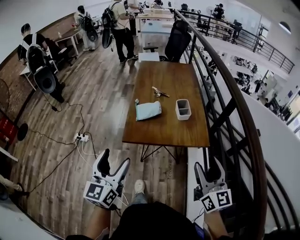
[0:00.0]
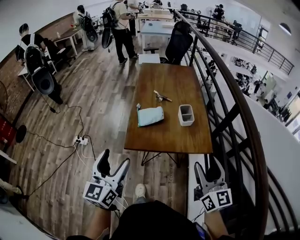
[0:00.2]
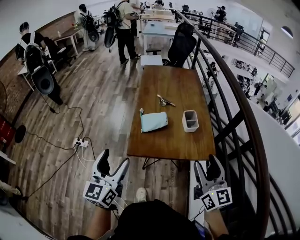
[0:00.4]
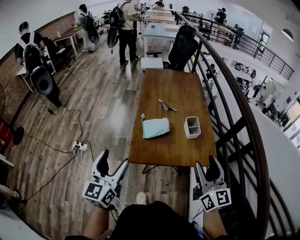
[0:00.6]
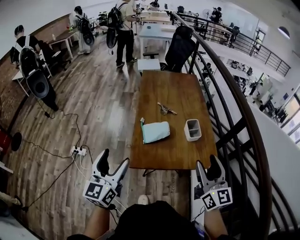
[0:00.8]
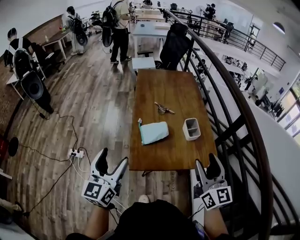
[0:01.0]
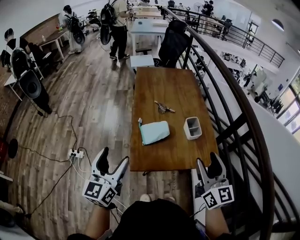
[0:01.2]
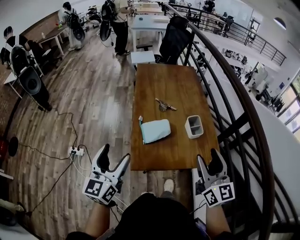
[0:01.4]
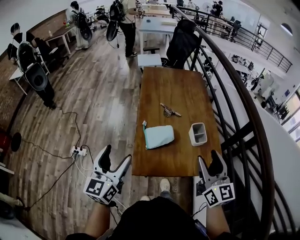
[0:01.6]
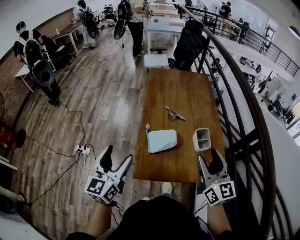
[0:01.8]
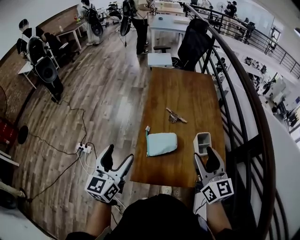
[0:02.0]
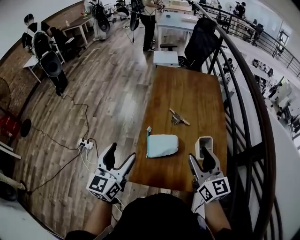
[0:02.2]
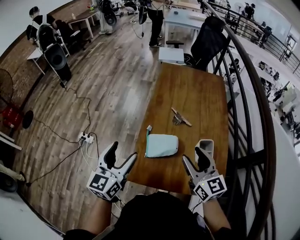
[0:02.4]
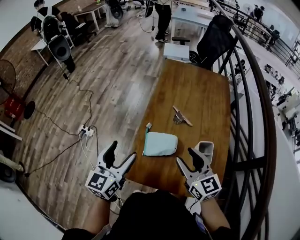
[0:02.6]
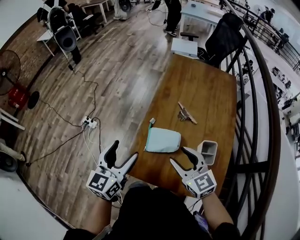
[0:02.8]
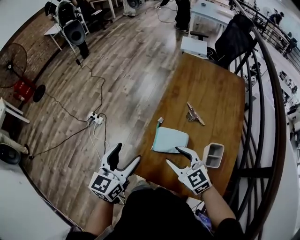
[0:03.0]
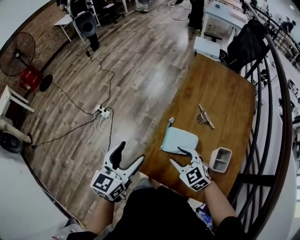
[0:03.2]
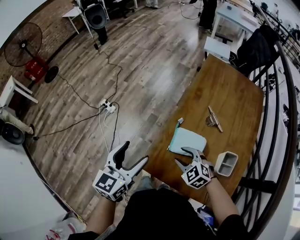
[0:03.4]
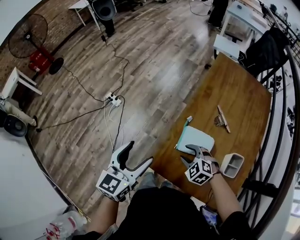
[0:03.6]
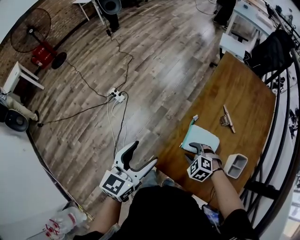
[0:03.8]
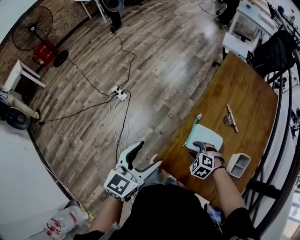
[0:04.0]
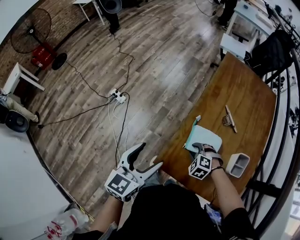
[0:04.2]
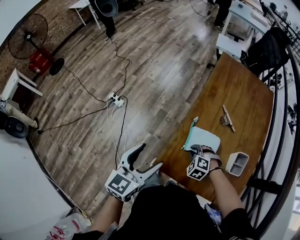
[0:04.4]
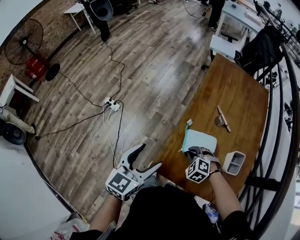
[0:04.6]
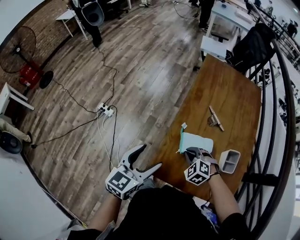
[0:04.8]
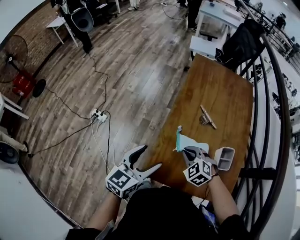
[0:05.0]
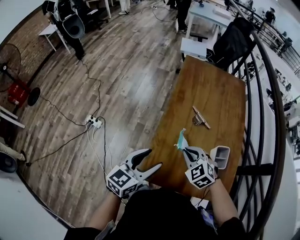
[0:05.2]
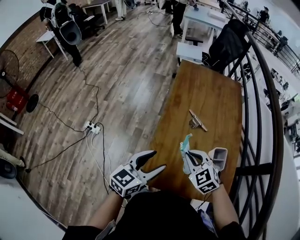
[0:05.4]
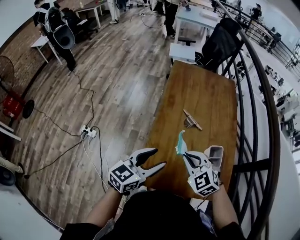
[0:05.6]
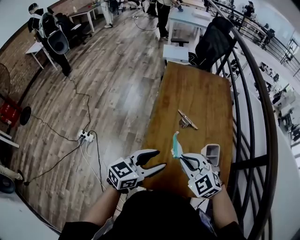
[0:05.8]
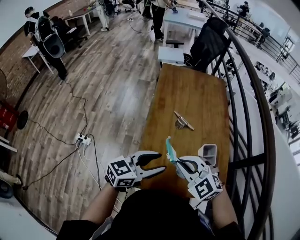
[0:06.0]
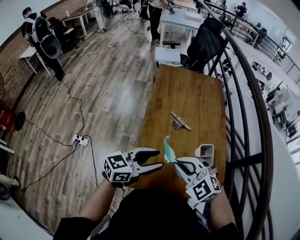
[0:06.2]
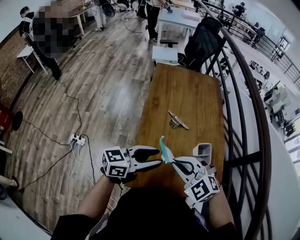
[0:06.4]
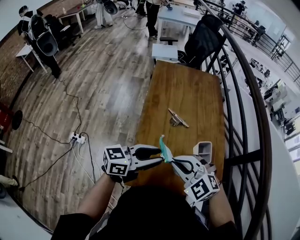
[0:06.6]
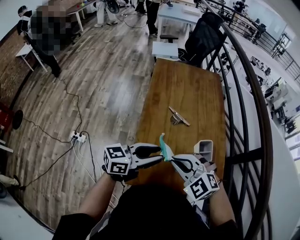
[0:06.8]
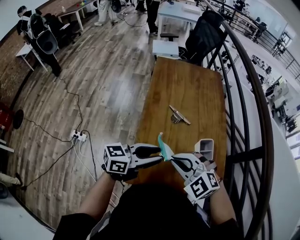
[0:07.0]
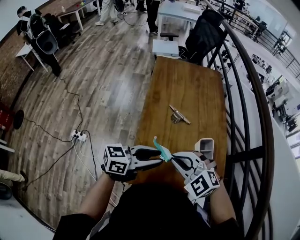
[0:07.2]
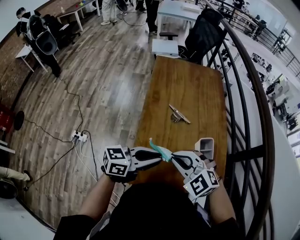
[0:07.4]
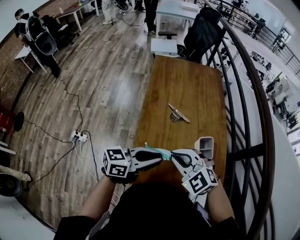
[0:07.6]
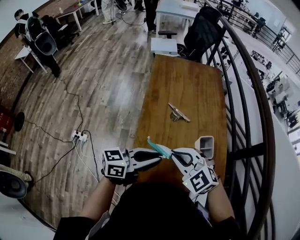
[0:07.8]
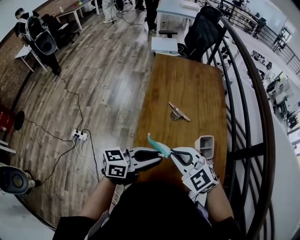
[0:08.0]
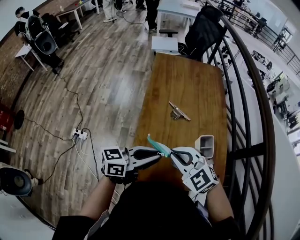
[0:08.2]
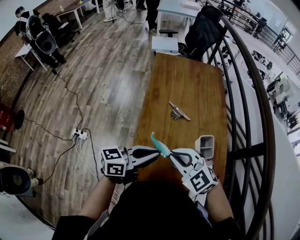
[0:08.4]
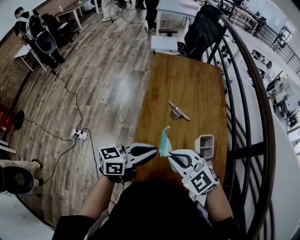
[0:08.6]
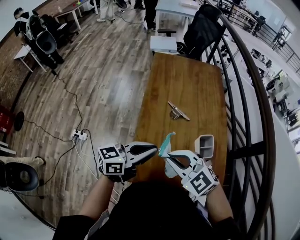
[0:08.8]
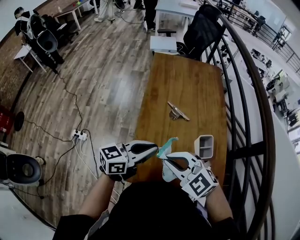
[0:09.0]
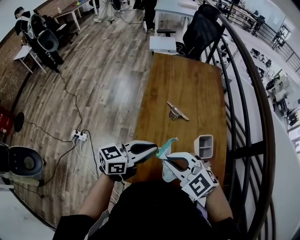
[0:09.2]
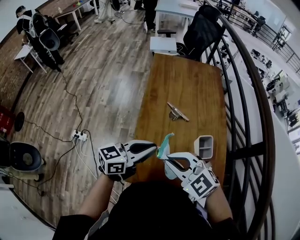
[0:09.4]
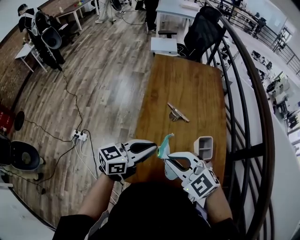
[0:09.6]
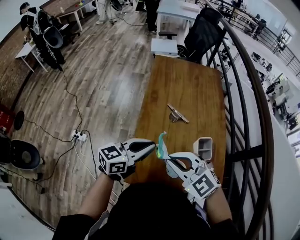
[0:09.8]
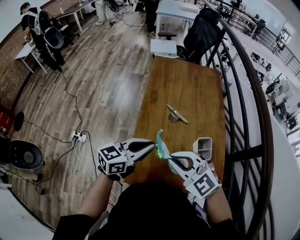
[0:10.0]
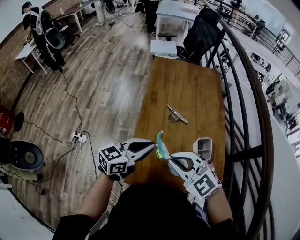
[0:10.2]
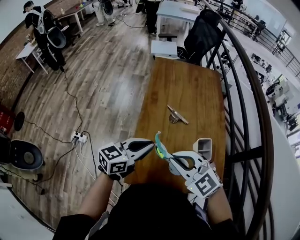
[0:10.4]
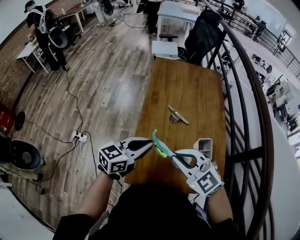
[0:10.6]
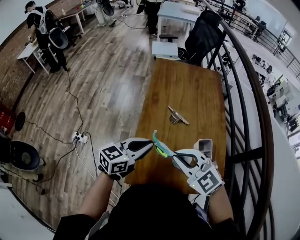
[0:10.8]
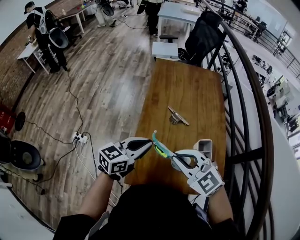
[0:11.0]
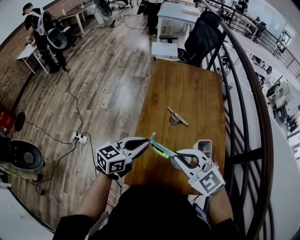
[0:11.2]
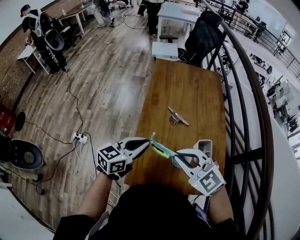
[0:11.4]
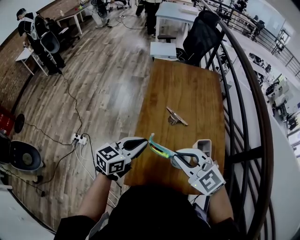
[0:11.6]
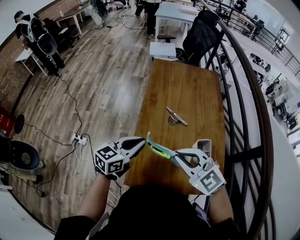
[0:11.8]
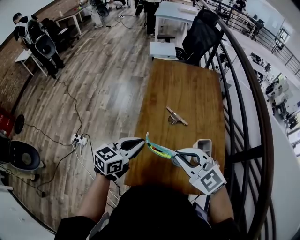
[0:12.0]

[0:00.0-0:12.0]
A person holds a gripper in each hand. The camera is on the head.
0:00.0 to 0:01.6: Both grippers move forward and to the left, about 25 cm.
0:01.6 to 0:03.0: The left gripper shifts by approximately 10 cm; the right gripper changes place by roughly 25 cm, and turns by approximately 60 degrees.
0:03.0 to 0:04.4: The right gripper travels downward by approximately 15 cm, tips its fingers downward by roughly 40 degrees, and closes up. The left gripper heads to the left, covering approximately 5 cm.
0:04.4 to 0:06.0: The right gripper goes approximately 25 cm upward, and tilts its fingers some 30 degrees upward, while the left gripper heads to the right, covering some 15 cm, changes its angle by approximately 50 degrees, and closes its fingers.
0:06.0 to 0:07.6: The left gripper closes.
0:07.6 to 0:09.0: The grippers stay close to where they were, moving slightly.
0:09.0 to 0:12.0: There are only small adjustments of the grippers.

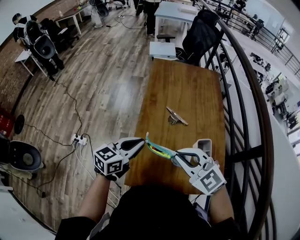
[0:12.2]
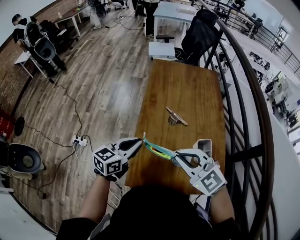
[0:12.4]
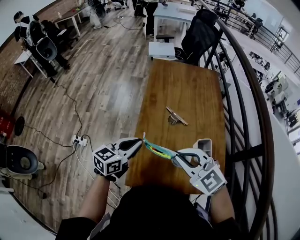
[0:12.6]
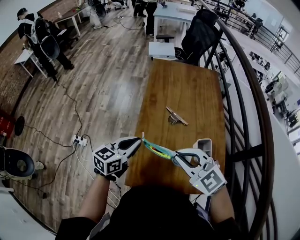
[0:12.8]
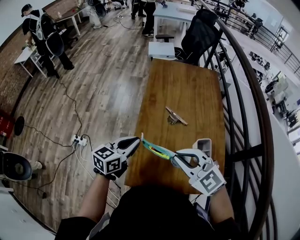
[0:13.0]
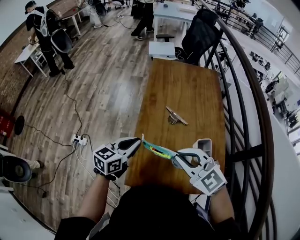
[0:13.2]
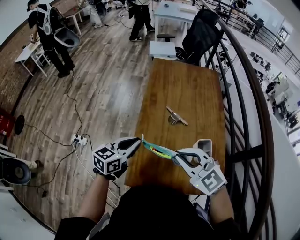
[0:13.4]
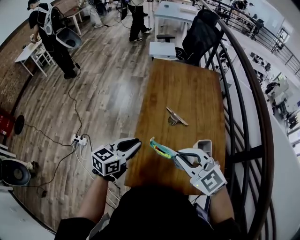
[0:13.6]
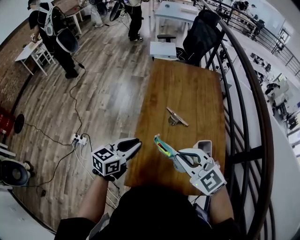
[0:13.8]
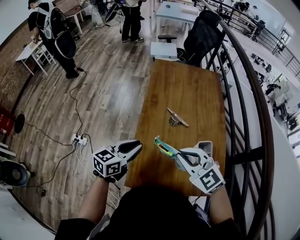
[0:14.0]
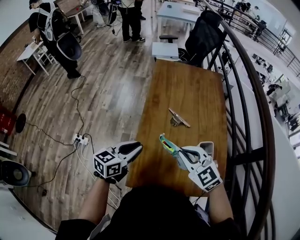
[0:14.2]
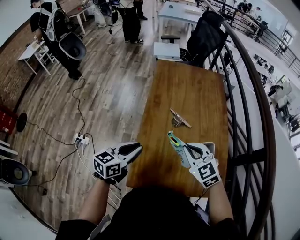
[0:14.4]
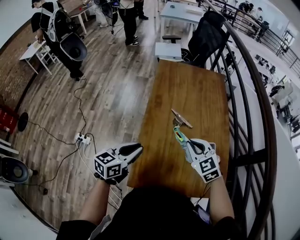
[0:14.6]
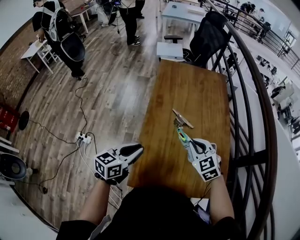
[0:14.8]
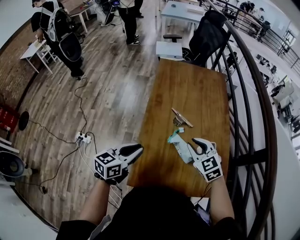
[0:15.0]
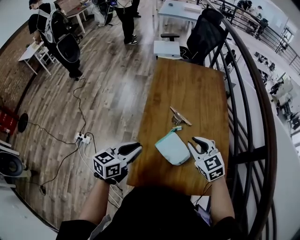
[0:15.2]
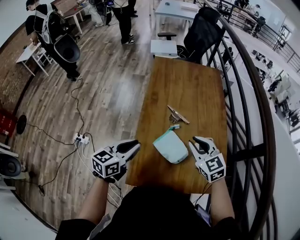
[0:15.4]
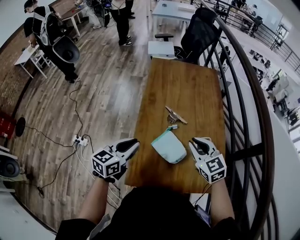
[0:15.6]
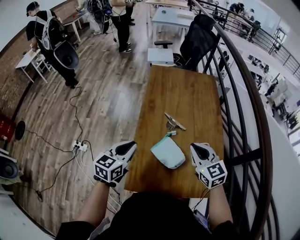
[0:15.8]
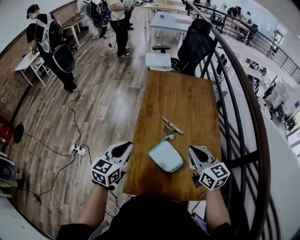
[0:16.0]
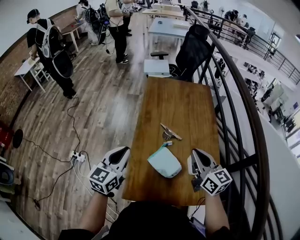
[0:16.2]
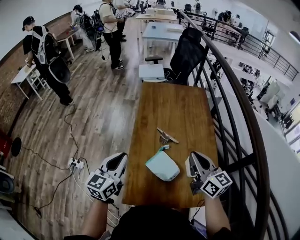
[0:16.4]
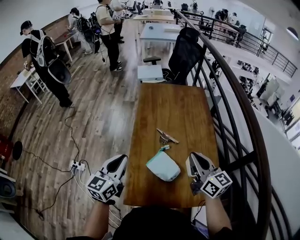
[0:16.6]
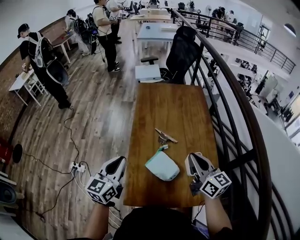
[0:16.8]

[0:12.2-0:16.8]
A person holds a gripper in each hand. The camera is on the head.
0:12.2 to 0:13.8: The grippers move only a little.
0:13.8 to 0:15.2: The right gripper is displaced downward, forward and to the right by approximately 10 cm, and changes its angle by about 20 degrees.
0:15.2 to 0:16.8: Both grippers move upward, roughly 10 cm. The left gripper turns by roughly 20 degrees. Meanwhile the right gripper turns by approximately 40 degrees.

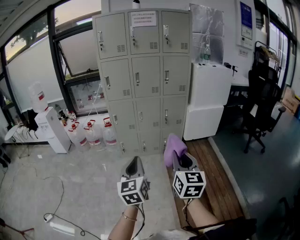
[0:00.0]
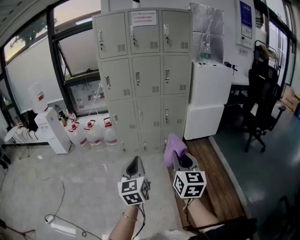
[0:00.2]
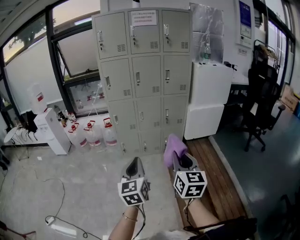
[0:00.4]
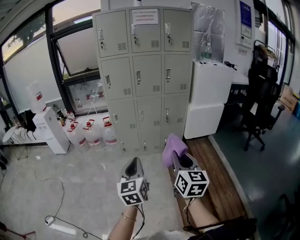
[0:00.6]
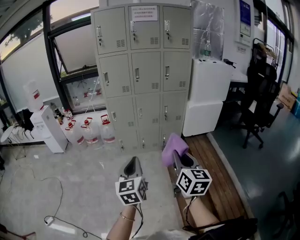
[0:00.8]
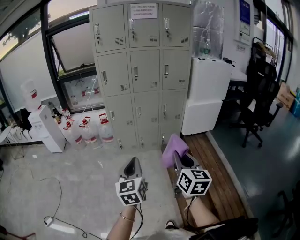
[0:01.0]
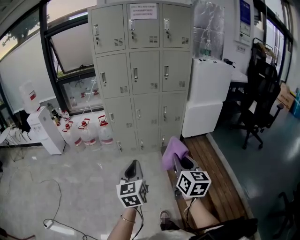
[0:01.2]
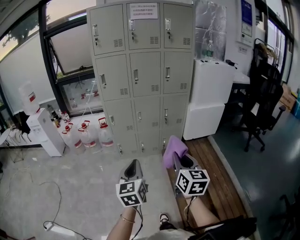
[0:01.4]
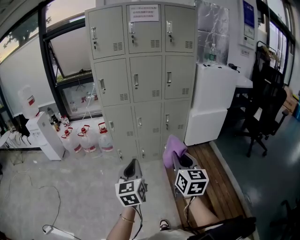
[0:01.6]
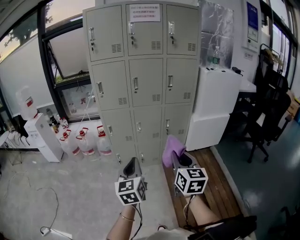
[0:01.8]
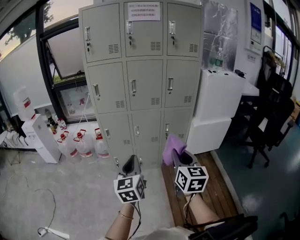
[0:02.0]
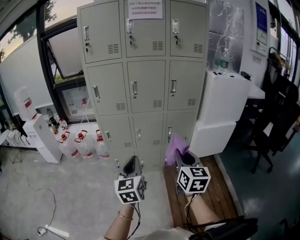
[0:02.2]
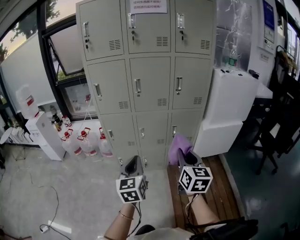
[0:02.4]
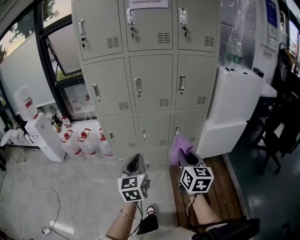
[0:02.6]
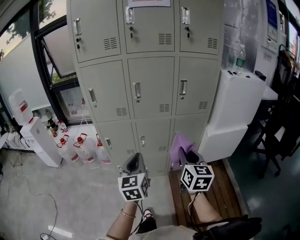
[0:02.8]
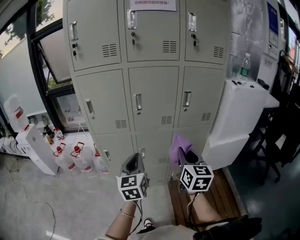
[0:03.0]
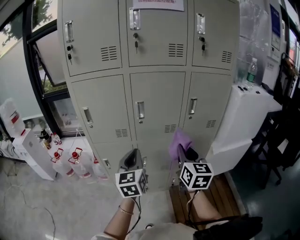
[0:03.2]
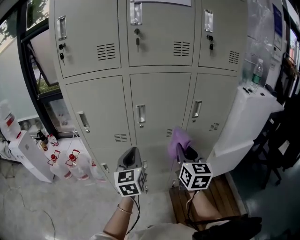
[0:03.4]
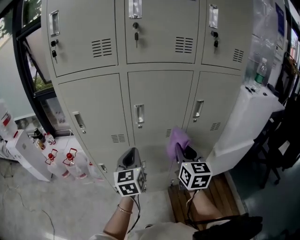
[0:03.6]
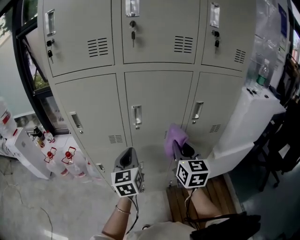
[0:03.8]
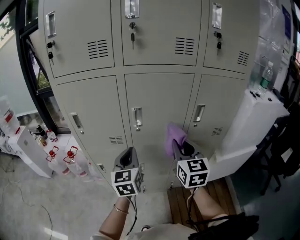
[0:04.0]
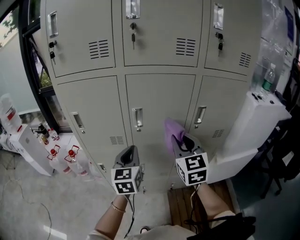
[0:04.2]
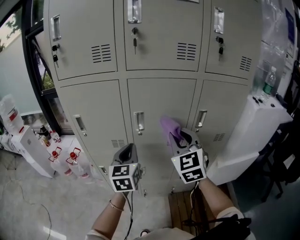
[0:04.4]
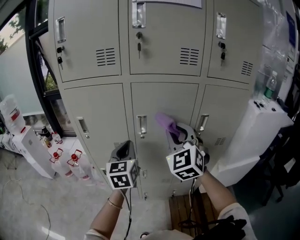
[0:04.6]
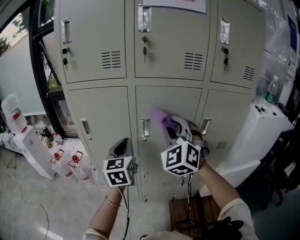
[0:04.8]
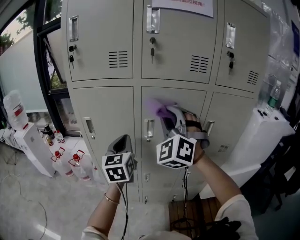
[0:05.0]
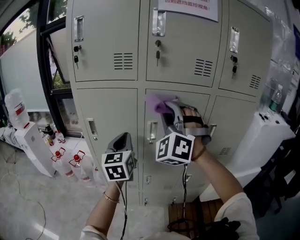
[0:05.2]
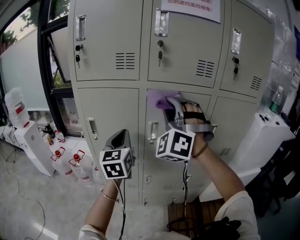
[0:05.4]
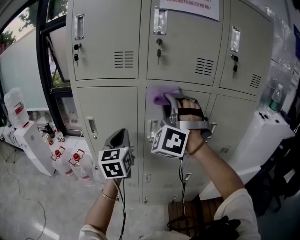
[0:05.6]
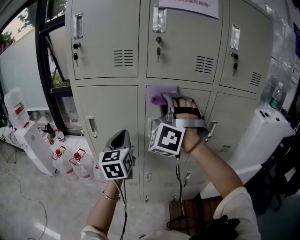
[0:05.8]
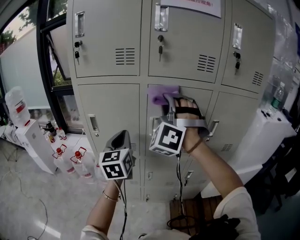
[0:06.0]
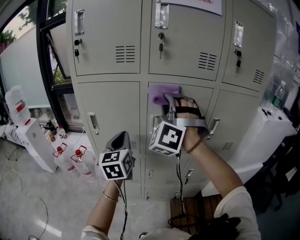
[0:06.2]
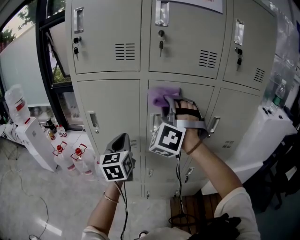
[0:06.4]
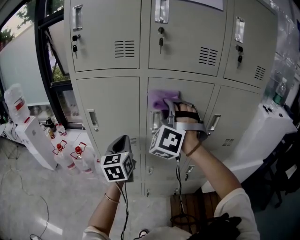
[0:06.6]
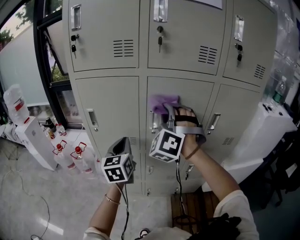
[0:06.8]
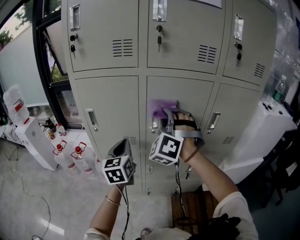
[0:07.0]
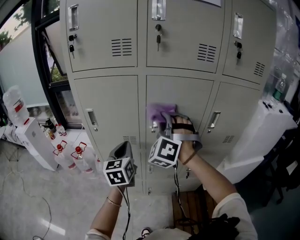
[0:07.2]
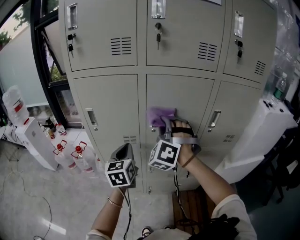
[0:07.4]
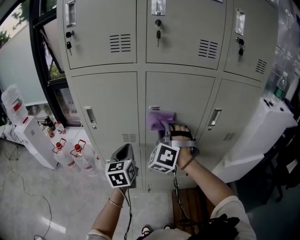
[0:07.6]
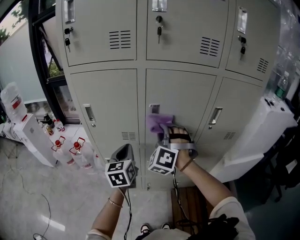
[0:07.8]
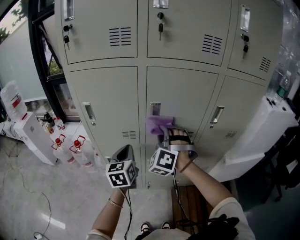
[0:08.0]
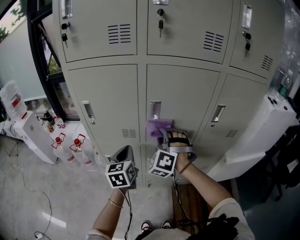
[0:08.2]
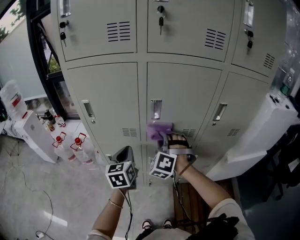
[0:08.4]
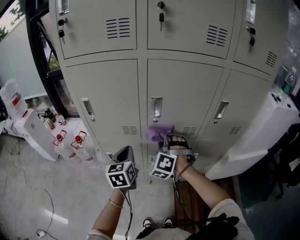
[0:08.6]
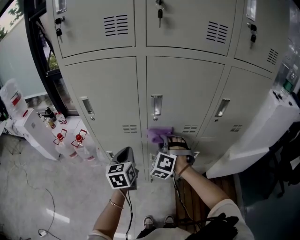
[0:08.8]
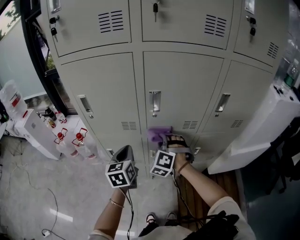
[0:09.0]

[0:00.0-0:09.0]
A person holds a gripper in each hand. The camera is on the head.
0:00.0 to 0:01.6: The grippers both shift forward by approximately 15 cm.
0:01.6 to 0:03.0: The two grippers travel together, forward, roughly 40 cm.
0:03.0 to 0:04.4: The left gripper travels forward by roughly 20 cm, while the right gripper shifts about 25 cm forward and upward, and changes its angle by some 40 degrees.
0:04.4 to 0:06.0: The left gripper moves to the left and upward, approximately 10 cm; the right gripper is displaced upward, to the left and forward by approximately 20 cm, and twists roughly 50 degrees counterclockwise, seen from behind.
0:06.0 to 0:07.6: Both grippers move downward, some 15 cm.
0:07.6 to 0:09.0: The left gripper heads downward, covering about 10 cm, while the right gripper shifts approximately 20 cm downward.
